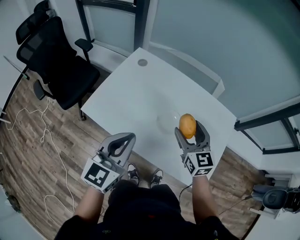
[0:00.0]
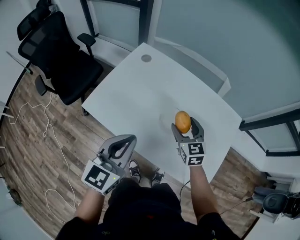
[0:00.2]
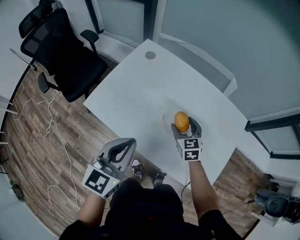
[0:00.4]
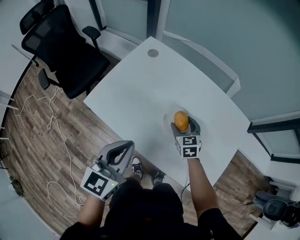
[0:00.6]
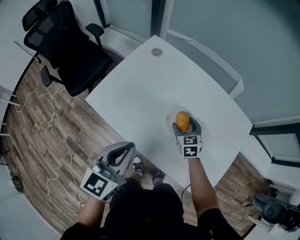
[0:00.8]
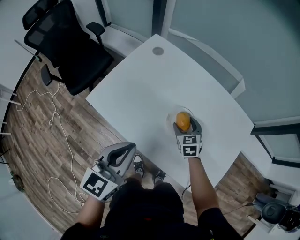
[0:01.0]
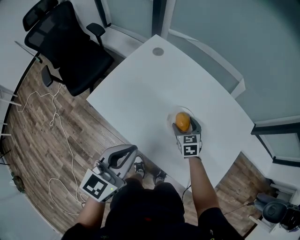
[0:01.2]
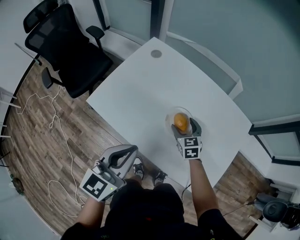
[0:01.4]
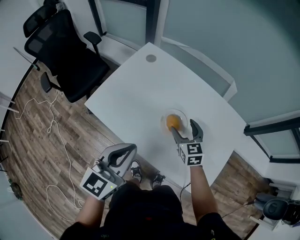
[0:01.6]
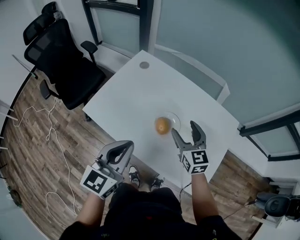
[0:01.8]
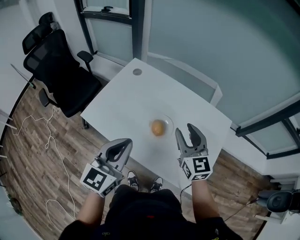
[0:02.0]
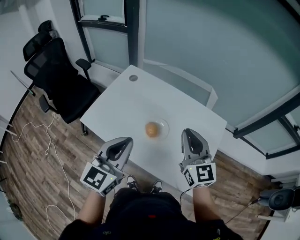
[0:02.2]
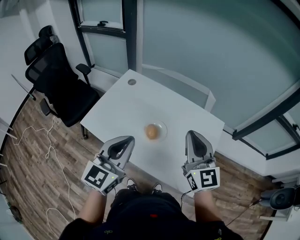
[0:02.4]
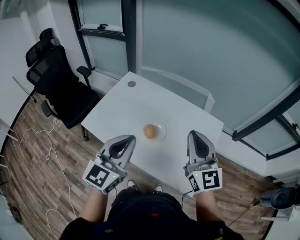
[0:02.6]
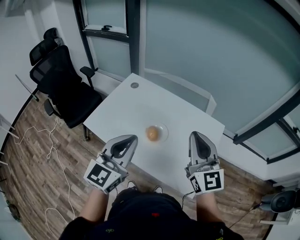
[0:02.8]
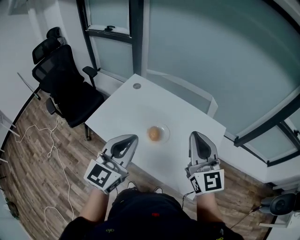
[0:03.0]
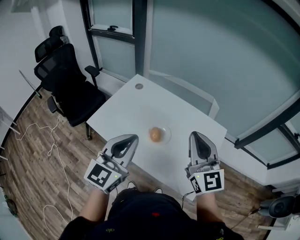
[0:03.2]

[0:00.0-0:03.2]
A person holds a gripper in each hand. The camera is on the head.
0:00.0 to 0:01.6: The right gripper is displaced downward by some 10 cm.
0:01.6 to 0:03.2: The right gripper heads upward and backward, covering roughly 35 cm, tips its fingers upward by roughly 30 degrees, and closes up, while the left gripper travels upward and to the right by roughly 15 cm.

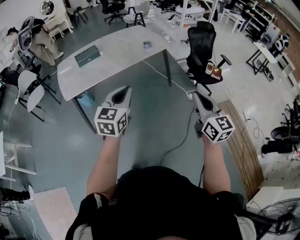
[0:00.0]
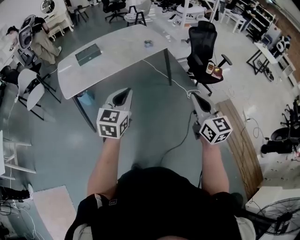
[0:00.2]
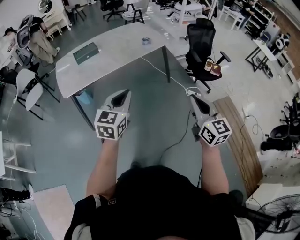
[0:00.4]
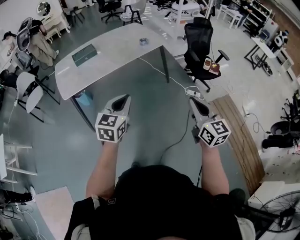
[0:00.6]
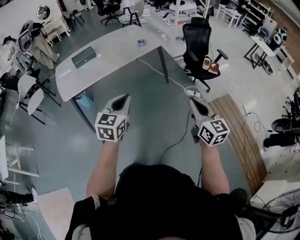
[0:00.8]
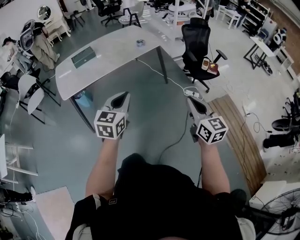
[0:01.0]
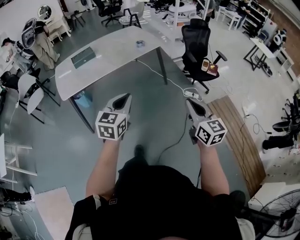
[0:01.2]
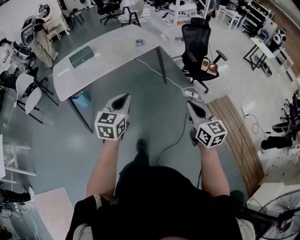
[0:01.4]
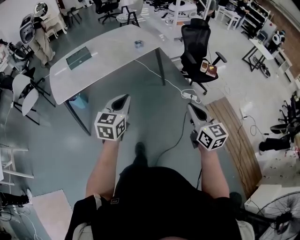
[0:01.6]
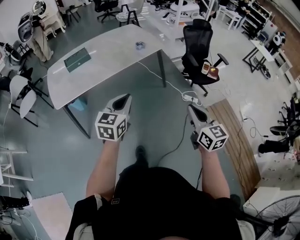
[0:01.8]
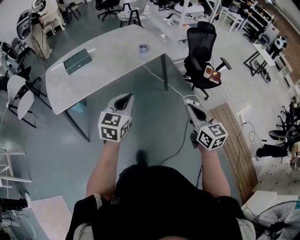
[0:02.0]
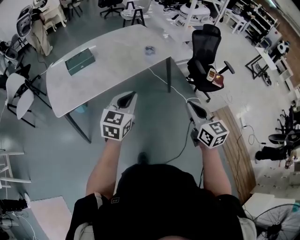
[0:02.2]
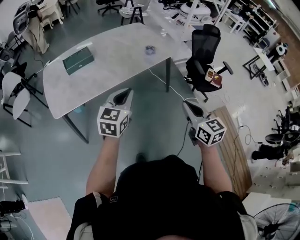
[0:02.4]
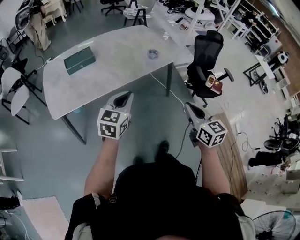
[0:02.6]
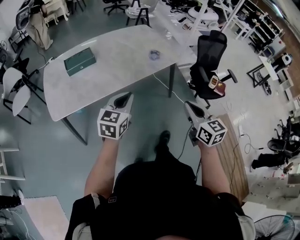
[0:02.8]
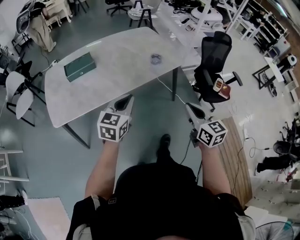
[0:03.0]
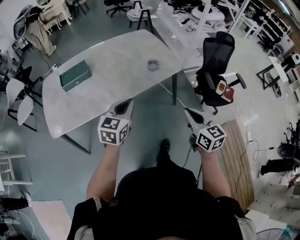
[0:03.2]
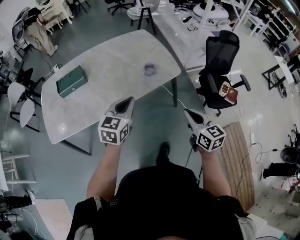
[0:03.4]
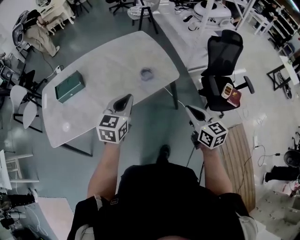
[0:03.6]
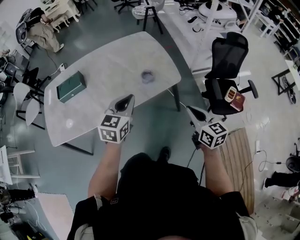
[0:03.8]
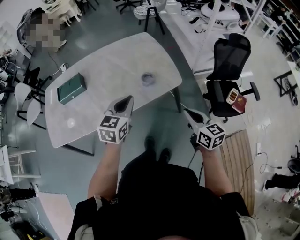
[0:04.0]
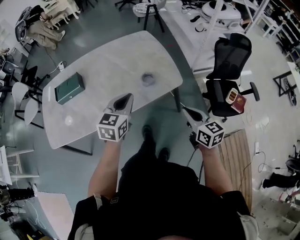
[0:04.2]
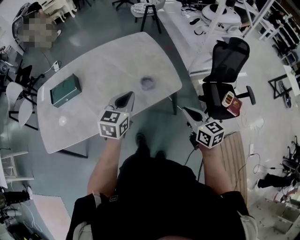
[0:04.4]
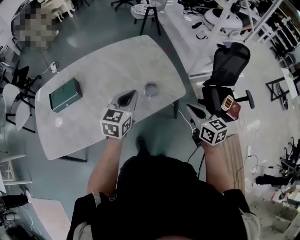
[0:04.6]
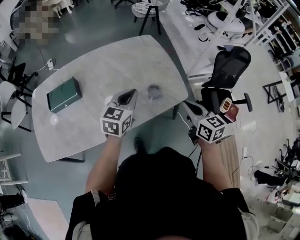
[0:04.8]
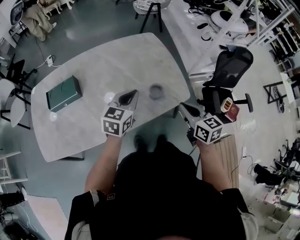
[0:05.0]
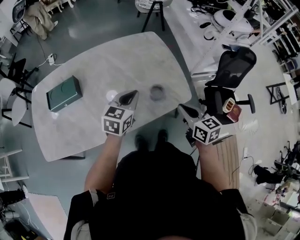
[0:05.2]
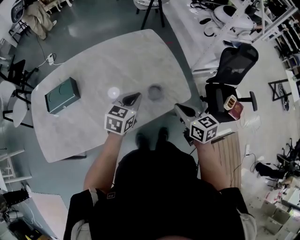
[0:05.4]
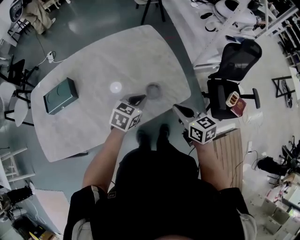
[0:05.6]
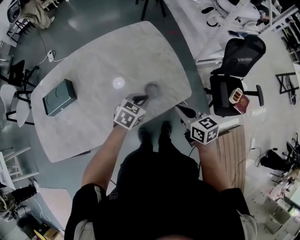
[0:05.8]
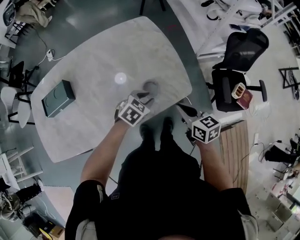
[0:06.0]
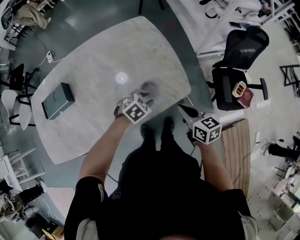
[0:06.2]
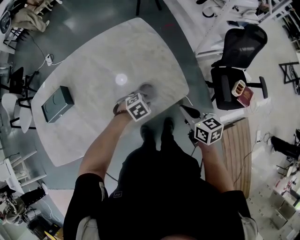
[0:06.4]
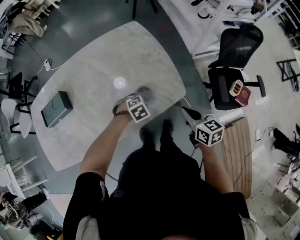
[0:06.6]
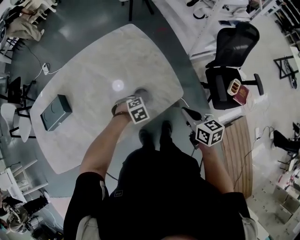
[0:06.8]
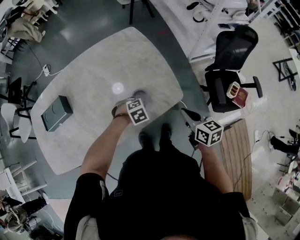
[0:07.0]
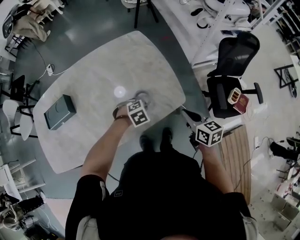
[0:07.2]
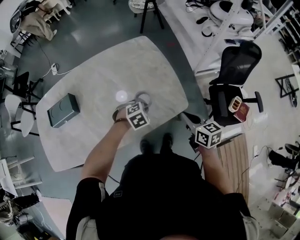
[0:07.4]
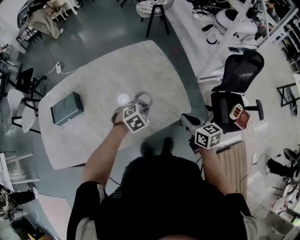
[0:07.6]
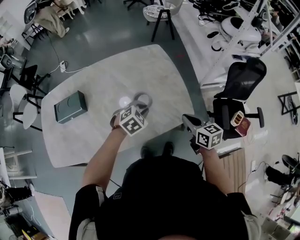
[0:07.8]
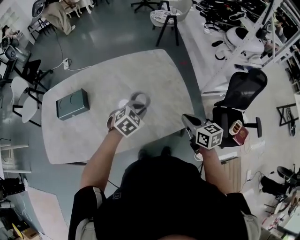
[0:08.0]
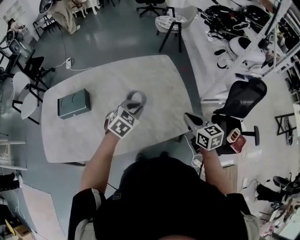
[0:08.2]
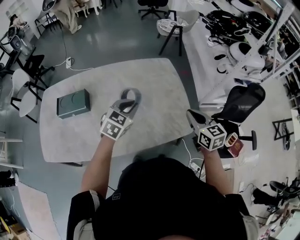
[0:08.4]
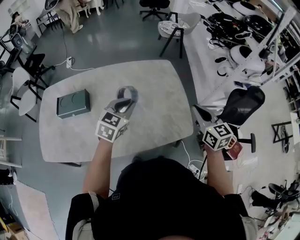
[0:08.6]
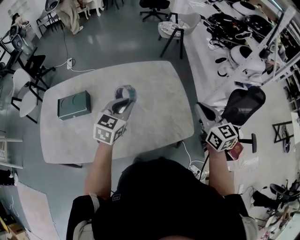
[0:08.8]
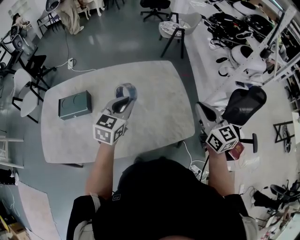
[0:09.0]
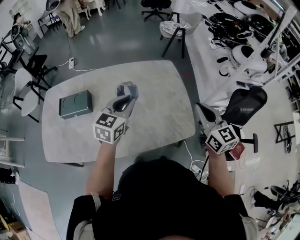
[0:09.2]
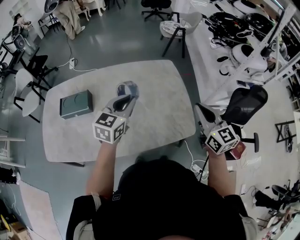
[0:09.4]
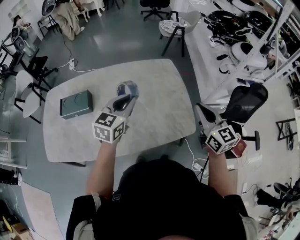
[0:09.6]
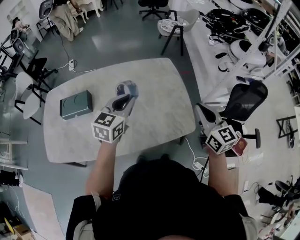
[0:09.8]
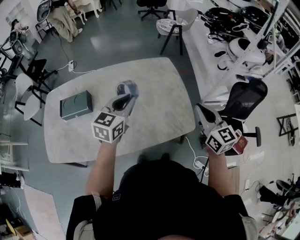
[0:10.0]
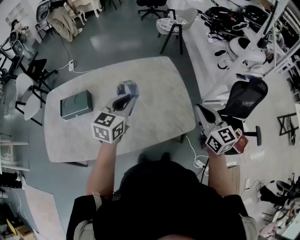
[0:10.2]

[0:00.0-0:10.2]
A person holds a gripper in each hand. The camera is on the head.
0:00.0 to 0:01.4: The right gripper heads downward, covering roughly 5 cm; the left gripper travels to the right by roughly 5 cm.
0:01.4 to 0:03.0: Both grippers are carried forward, some 40 cm.
0:03.0 to 0:04.4: Both grippers travel together forward and to the right, some 35 cm.
0:04.4 to 0:05.8: The left gripper goes about 20 cm downward and forward, and turns by about 30 degrees. Meanwhile the right gripper heads forward and downward, covering about 20 cm.
0:05.8 to 0:07.2: The left gripper moves downward, some 10 cm, changes its angle by roughly 40 degrees, and opens, then closes again; the right gripper ends up about 10 cm from where it was.
0:07.2 to 0:08.8: The left gripper heads upward and to the left, covering some 35 cm, and tilts its fingers about 50 degrees upward. Meanwhile the right gripper travels upward, forward and to the left by some 25 cm, and turns by about 30 degrees.
0:08.8 to 0:10.2: The grippers stay close to where they were, moving slightly.

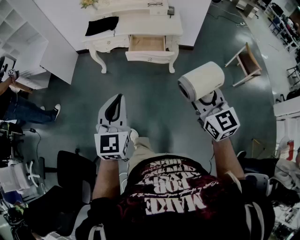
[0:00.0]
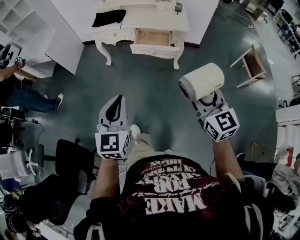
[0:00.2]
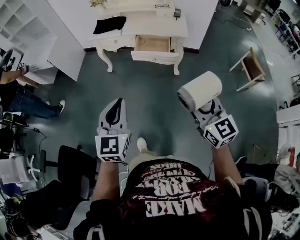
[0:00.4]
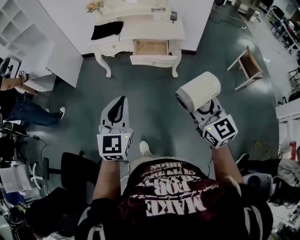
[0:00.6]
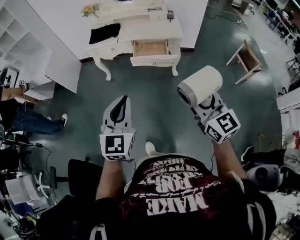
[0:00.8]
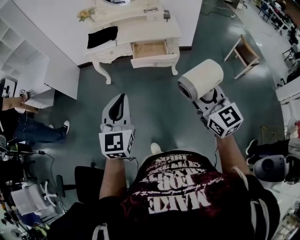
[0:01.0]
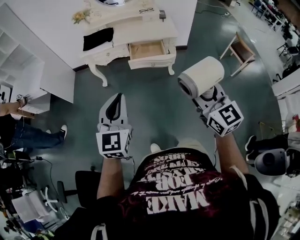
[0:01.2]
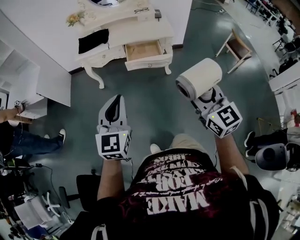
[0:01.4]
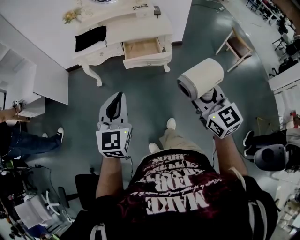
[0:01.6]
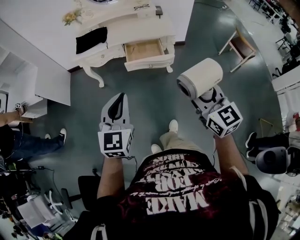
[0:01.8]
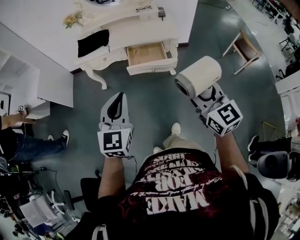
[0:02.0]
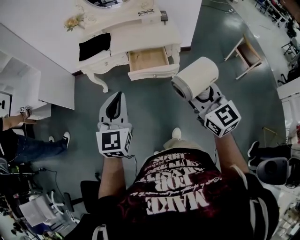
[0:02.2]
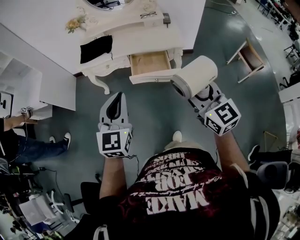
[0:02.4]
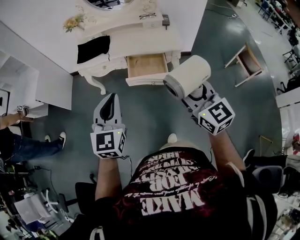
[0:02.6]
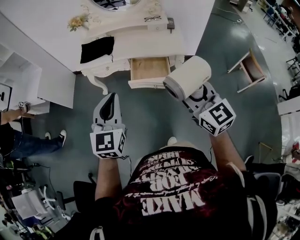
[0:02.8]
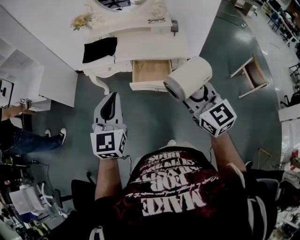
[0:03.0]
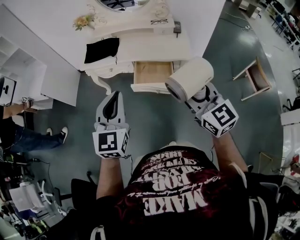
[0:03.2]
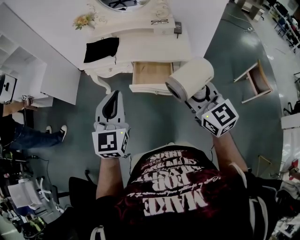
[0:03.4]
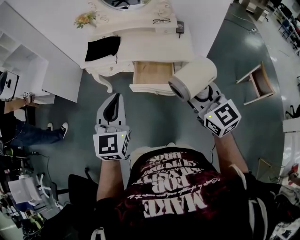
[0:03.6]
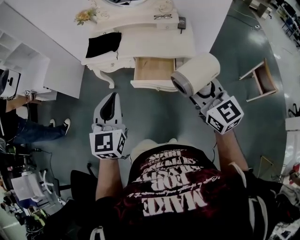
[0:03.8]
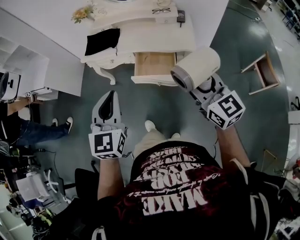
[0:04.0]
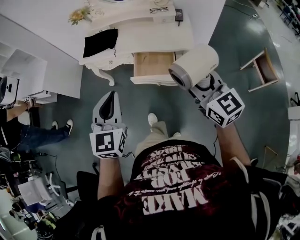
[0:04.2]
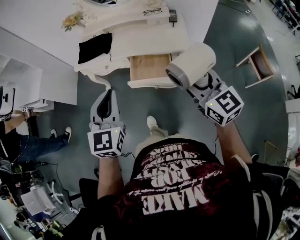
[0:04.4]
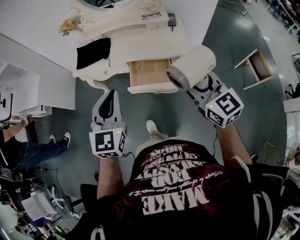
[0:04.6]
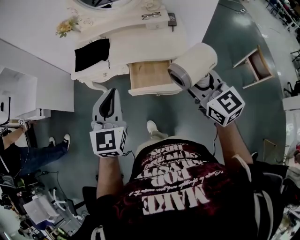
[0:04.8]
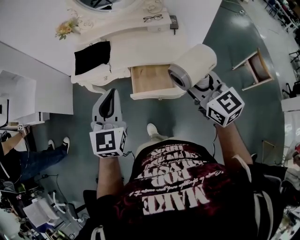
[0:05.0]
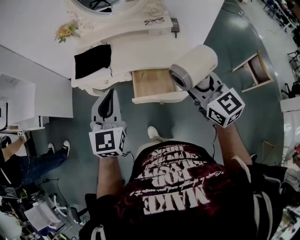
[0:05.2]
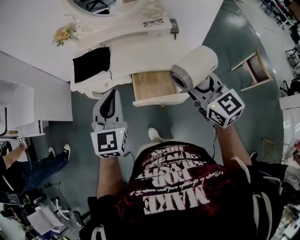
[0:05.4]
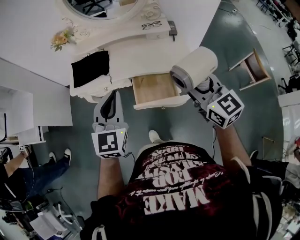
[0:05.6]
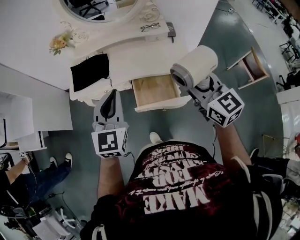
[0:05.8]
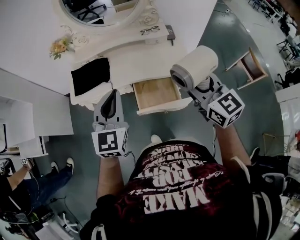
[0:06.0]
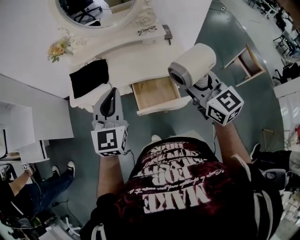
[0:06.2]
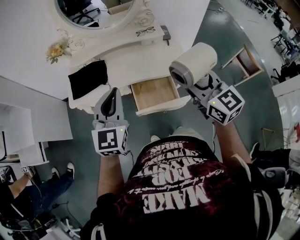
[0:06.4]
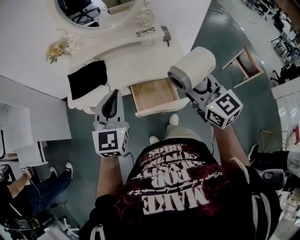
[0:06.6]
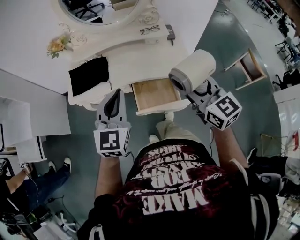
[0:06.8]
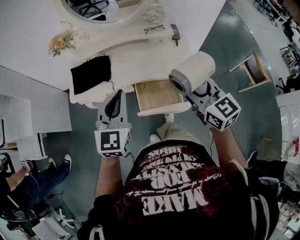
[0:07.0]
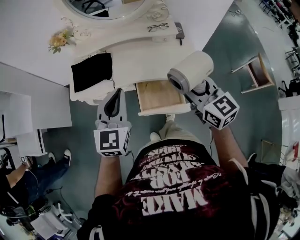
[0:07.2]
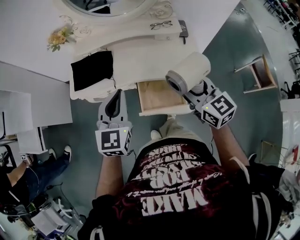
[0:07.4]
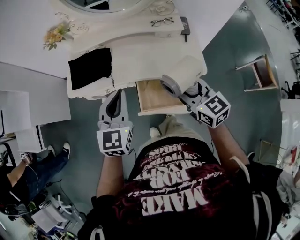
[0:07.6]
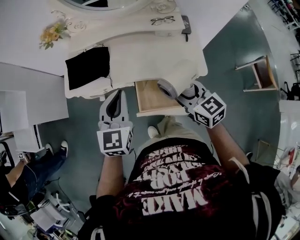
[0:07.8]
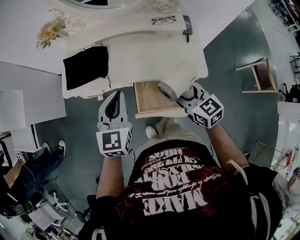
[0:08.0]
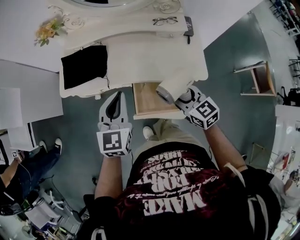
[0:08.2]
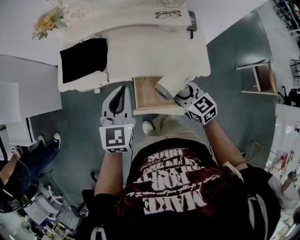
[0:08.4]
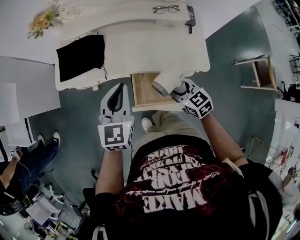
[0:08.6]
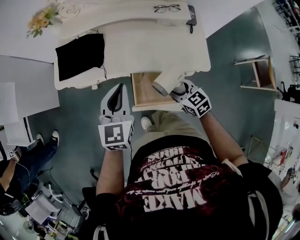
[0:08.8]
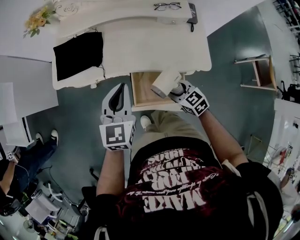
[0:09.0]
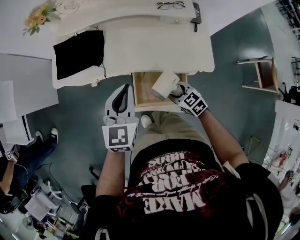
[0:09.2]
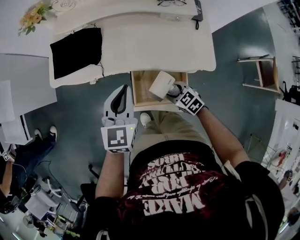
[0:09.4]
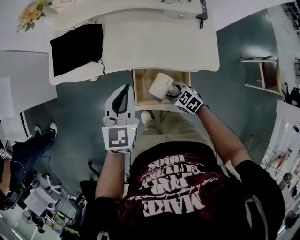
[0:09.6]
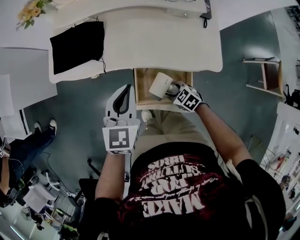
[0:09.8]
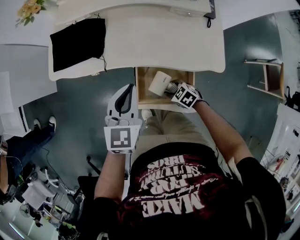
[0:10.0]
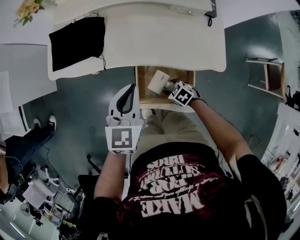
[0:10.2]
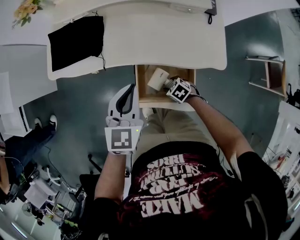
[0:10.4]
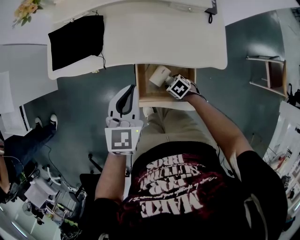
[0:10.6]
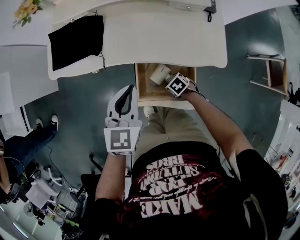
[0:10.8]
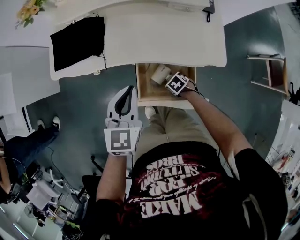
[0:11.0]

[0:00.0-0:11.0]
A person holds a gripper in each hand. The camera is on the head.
0:00.0 to 0:01.6: The left gripper goes about 10 cm forward and to the left; the right gripper goes some 10 cm to the left.
0:01.6 to 0:03.2: Both grippers move forward, roughly 20 cm.
0:03.2 to 0:04.8: The grippers both shift forward by some 10 cm.
0:04.8 to 0:06.2: The left gripper is displaced forward by some 15 cm, while the right gripper heads forward and to the left, covering roughly 10 cm.
0:06.2 to 0:07.8: Both grippers travel together downward and forward, approximately 15 cm. The right gripper swivels approximately 20 degrees.
0:07.8 to 0:09.4: The right gripper shifts approximately 25 cm downward, and rotates roughly 30 degrees, while the left gripper heads downward, covering roughly 10 cm.
0:09.4 to 0:11.0: The right gripper goes approximately 15 cm downward, and swivels roughly 30 degrees.
